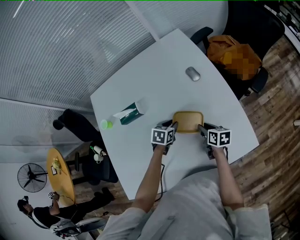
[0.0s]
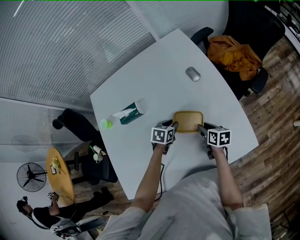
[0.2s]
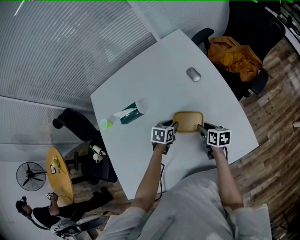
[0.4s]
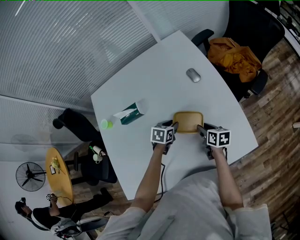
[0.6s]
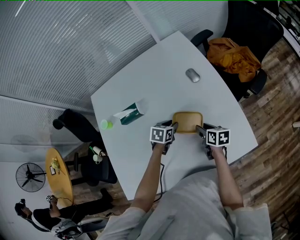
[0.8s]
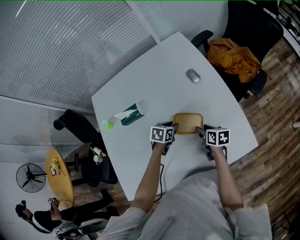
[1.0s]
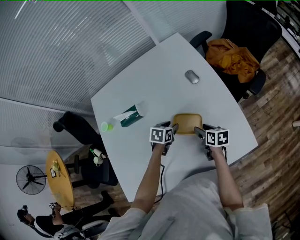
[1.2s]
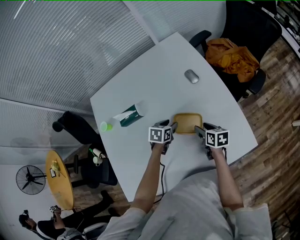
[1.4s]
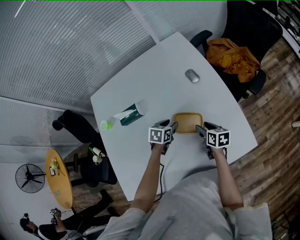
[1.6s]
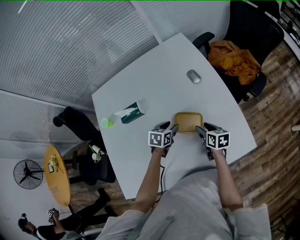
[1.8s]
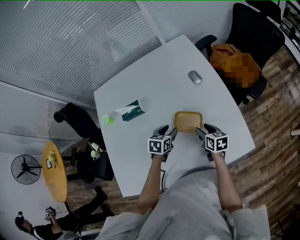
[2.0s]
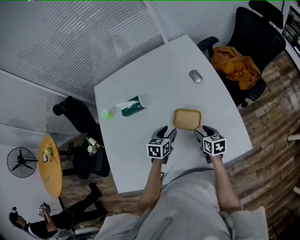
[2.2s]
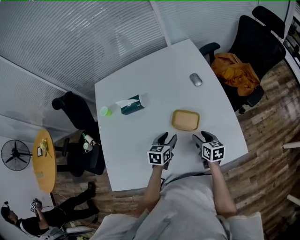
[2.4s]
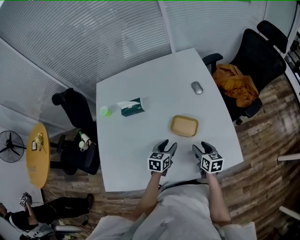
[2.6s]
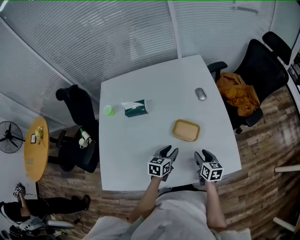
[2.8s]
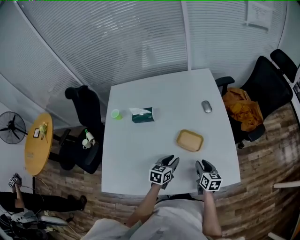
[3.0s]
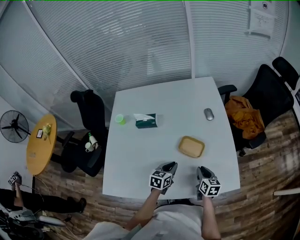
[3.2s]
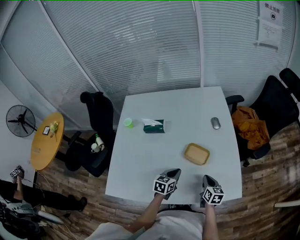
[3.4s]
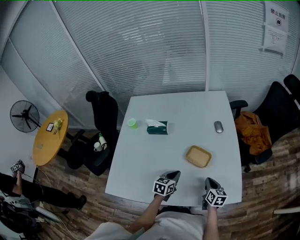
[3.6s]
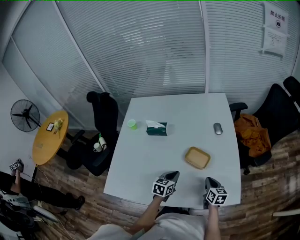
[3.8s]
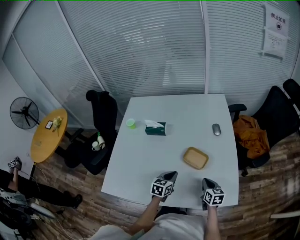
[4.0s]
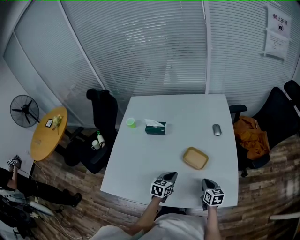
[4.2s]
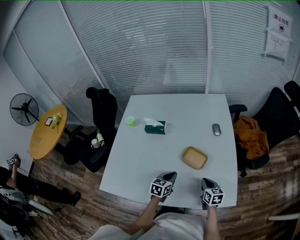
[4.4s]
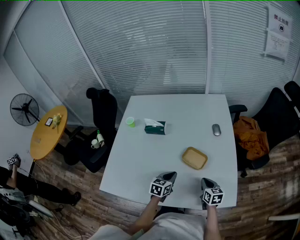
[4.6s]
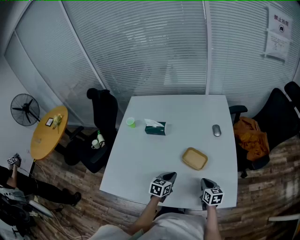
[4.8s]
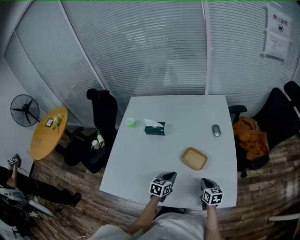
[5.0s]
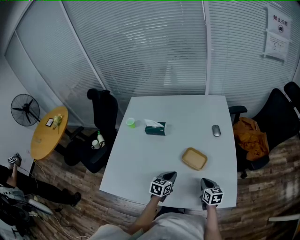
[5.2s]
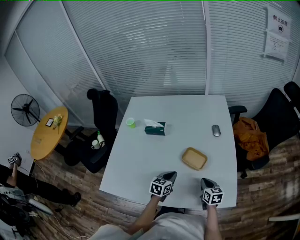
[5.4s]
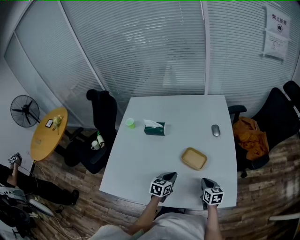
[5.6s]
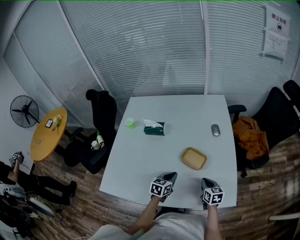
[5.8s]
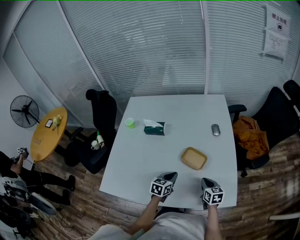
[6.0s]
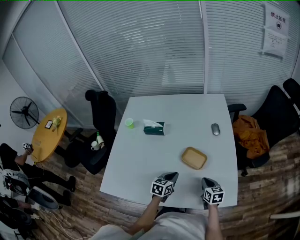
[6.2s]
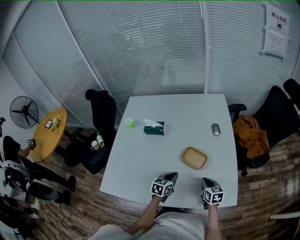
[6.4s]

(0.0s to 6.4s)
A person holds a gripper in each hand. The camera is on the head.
0.0s - 1.6s: The left gripper opens its fingers. The right gripper opens.
1.6s - 3.2s: The left gripper moves backward and upward, approximately 15 cm, rotates roughly 30 degrees, and closes its fingers, while the right gripper heads backward, covering about 10 cm, and closes up.
3.2s - 4.8s: There are only small adjustments of the grippers.
4.8s - 6.4s: Both grippers stay about where they are.

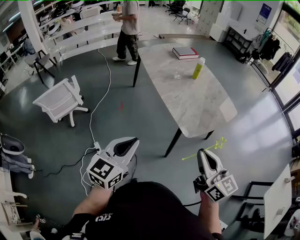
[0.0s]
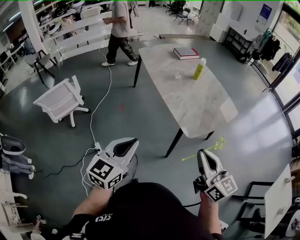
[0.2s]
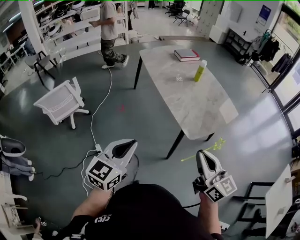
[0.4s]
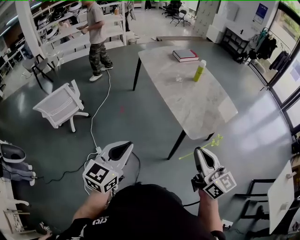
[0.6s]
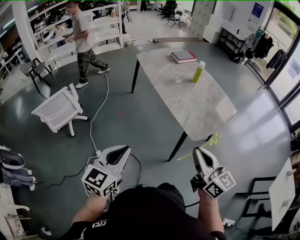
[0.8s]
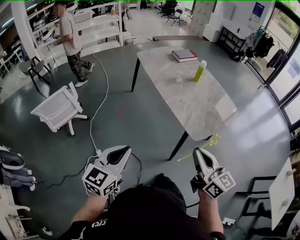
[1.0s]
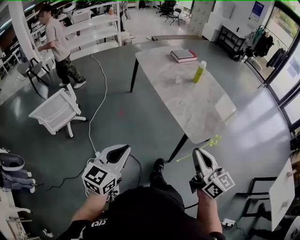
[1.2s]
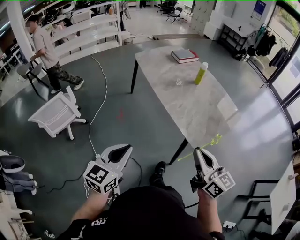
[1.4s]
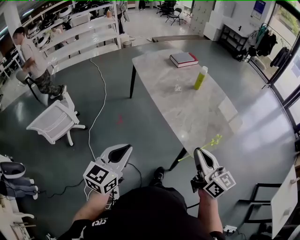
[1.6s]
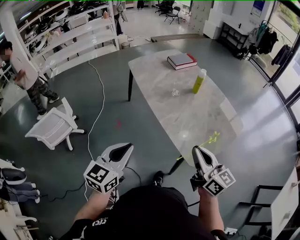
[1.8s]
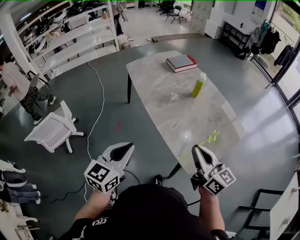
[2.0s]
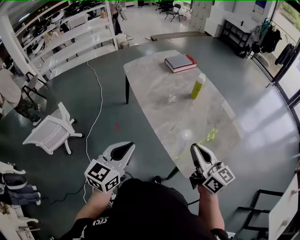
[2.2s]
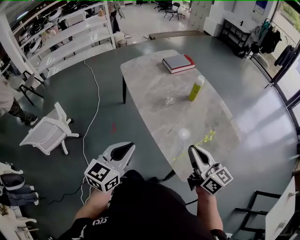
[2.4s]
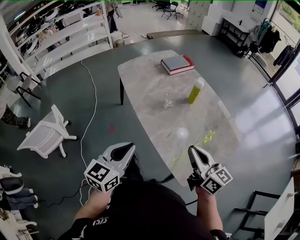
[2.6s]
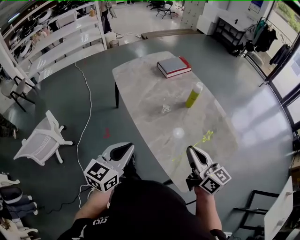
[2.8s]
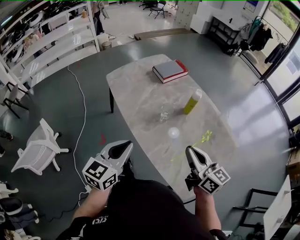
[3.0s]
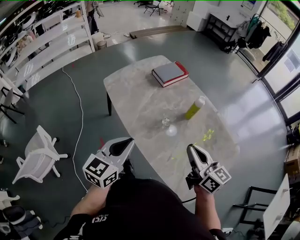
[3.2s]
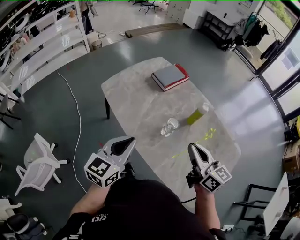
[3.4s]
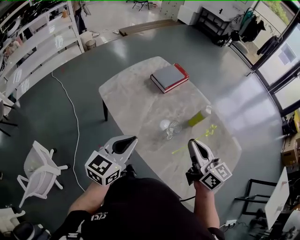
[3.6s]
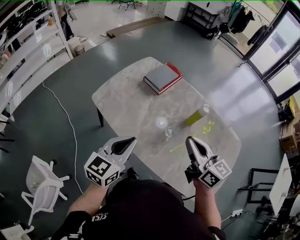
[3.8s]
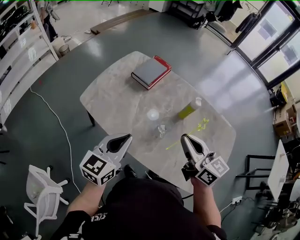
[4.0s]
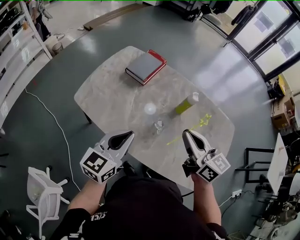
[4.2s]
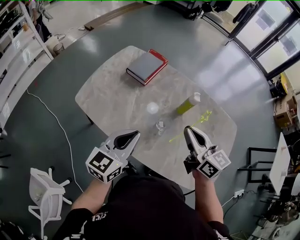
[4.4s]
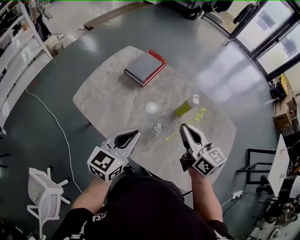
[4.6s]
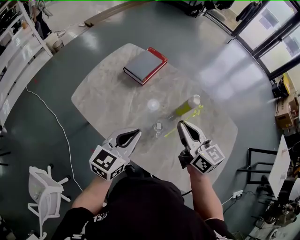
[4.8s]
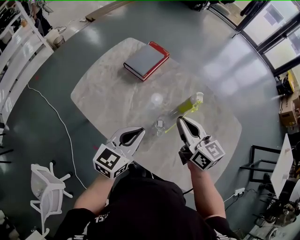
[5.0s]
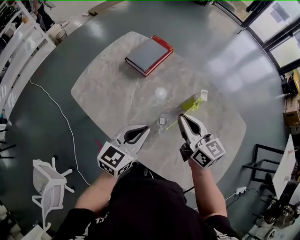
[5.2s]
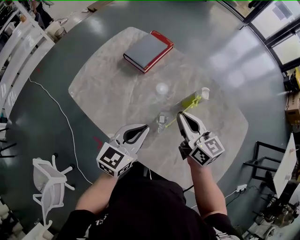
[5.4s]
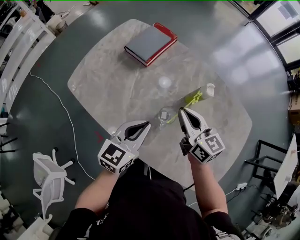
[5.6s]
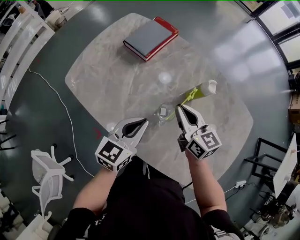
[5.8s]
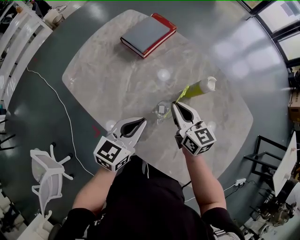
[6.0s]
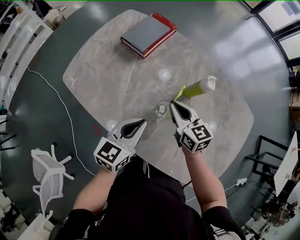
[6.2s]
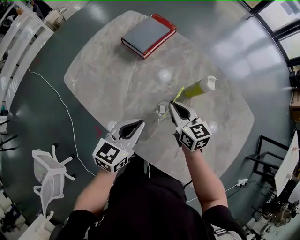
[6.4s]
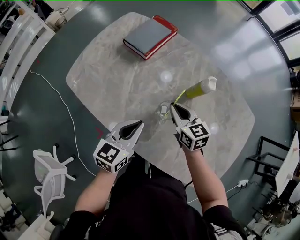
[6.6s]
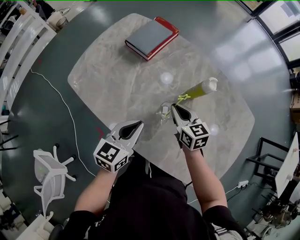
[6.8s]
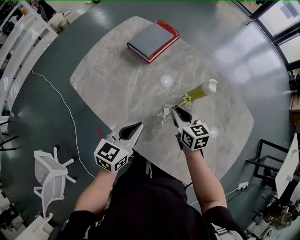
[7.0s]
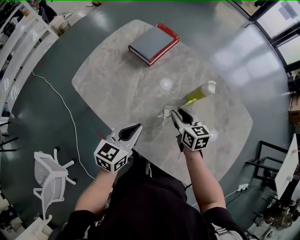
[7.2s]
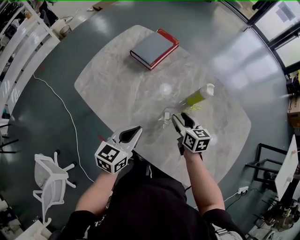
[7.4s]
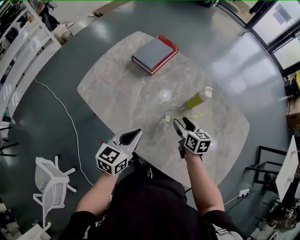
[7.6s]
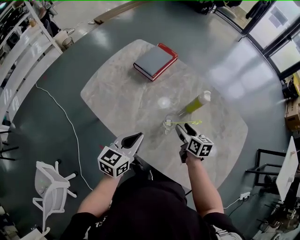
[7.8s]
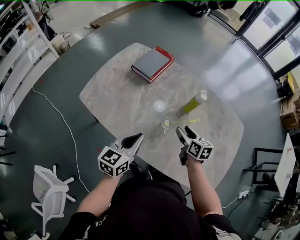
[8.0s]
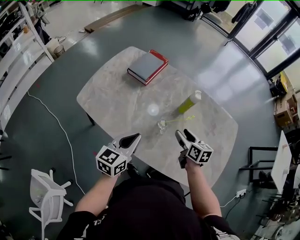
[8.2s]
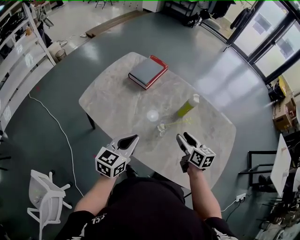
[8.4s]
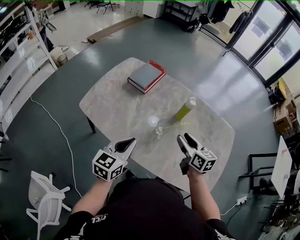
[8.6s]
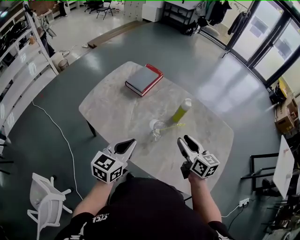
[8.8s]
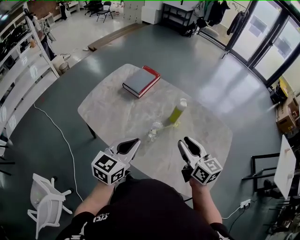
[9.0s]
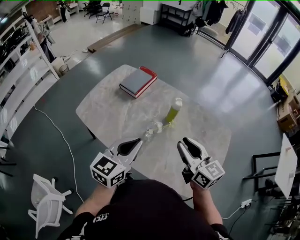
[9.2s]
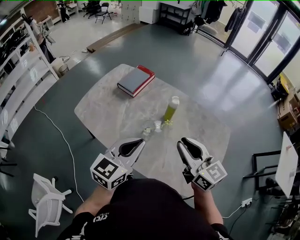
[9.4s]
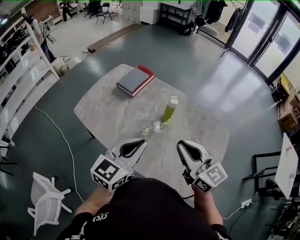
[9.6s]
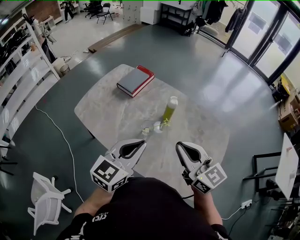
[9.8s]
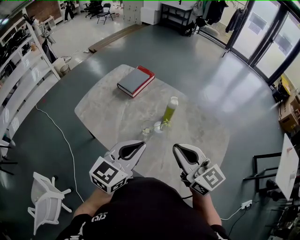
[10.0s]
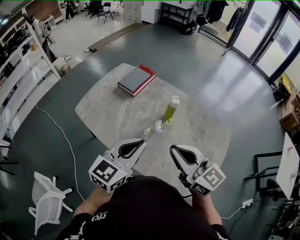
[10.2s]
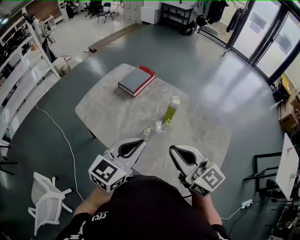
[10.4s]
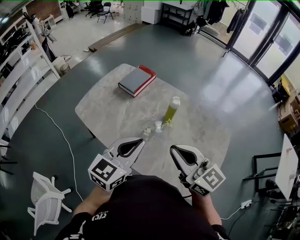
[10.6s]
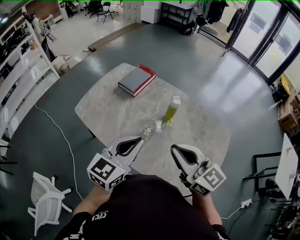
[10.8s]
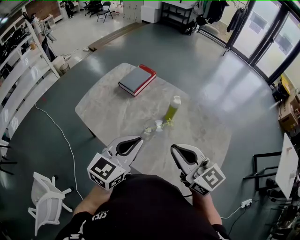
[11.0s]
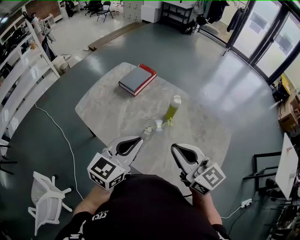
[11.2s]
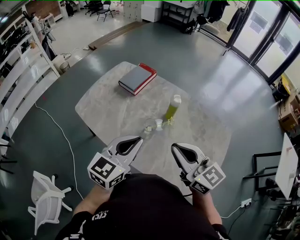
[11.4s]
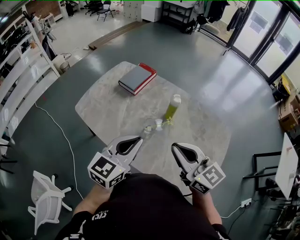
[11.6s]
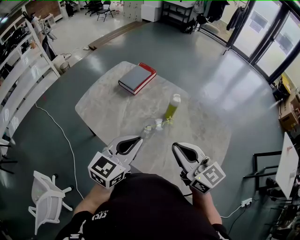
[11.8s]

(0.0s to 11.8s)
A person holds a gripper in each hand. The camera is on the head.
0.0s - 1.4s: The left gripper is displaced to the left and forward by about 10 cm. The right gripper travels forward and to the left by some 10 cm.
1.4s - 3.0s: The two grippers go approximately 40 cm forward.
3.0s - 4.4s: The left gripper changes place by approximately 25 cm, and changes its angle by roughly 30 degrees. Meanwhile the right gripper changes place by roughly 20 cm, and swivels approximately 20 degrees.
4.4s - 6.0s: The right gripper moves downward and forward, roughly 20 cm; the left gripper moves downward, to the right and forward, roughly 15 cm.
6.0s - 7.4s: The left gripper ends up some 5 cm from where it was. The right gripper moves downward, about 5 cm, and opens its fingers.
7.4s - 8.8s: The left gripper travels upward and backward by roughly 10 cm. Meanwhile the right gripper moves upward and backward, roughly 20 cm.
8.8s - 10.4s: The left gripper heads to the right and upward, covering approximately 15 cm, while the right gripper shifts roughly 15 cm upward and backward, changes its angle by roughly 30 degrees, and closes its fingers.
10.4s - 11.8s: There are only small adjustments of the grippers.

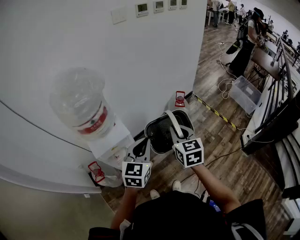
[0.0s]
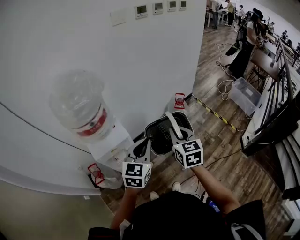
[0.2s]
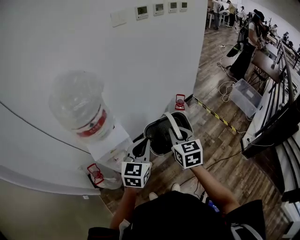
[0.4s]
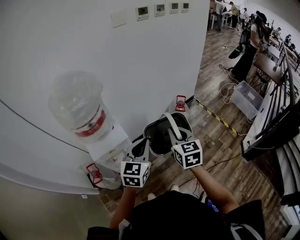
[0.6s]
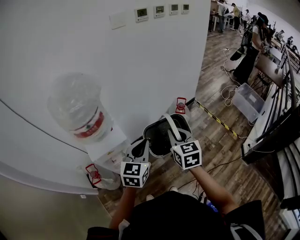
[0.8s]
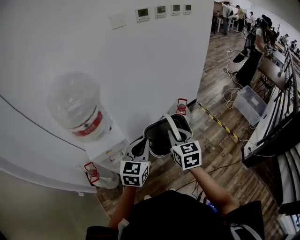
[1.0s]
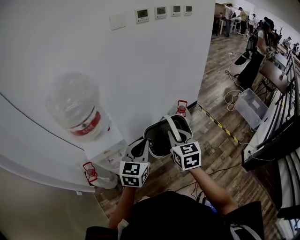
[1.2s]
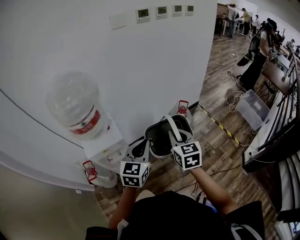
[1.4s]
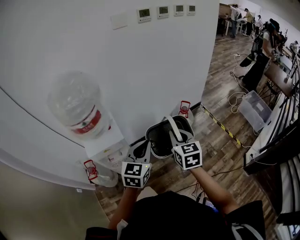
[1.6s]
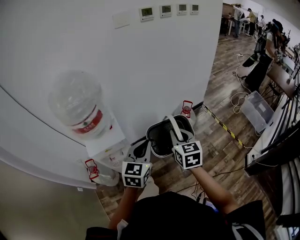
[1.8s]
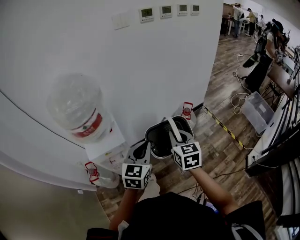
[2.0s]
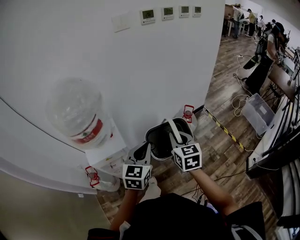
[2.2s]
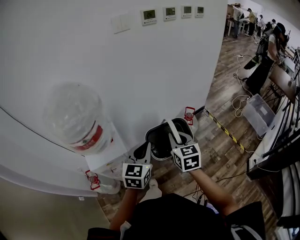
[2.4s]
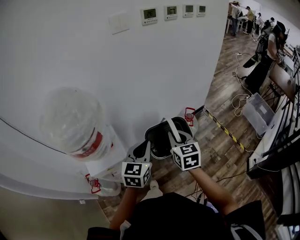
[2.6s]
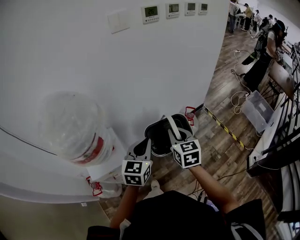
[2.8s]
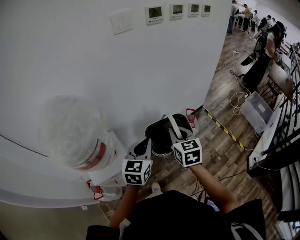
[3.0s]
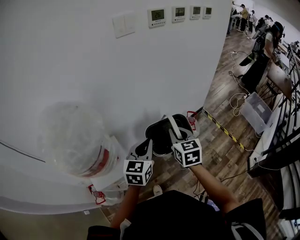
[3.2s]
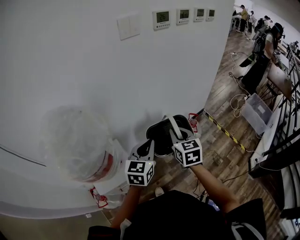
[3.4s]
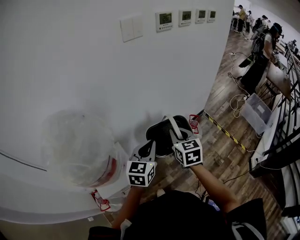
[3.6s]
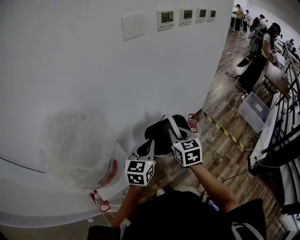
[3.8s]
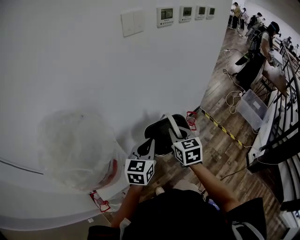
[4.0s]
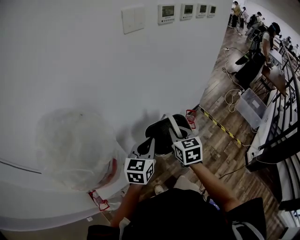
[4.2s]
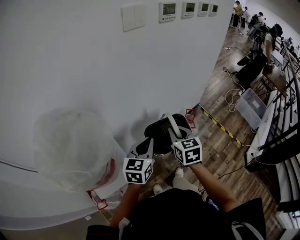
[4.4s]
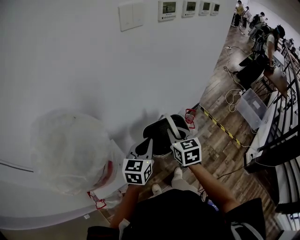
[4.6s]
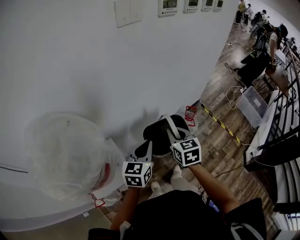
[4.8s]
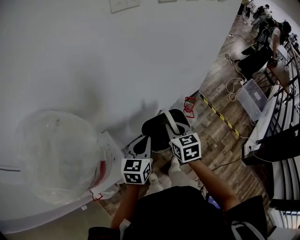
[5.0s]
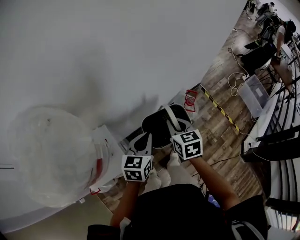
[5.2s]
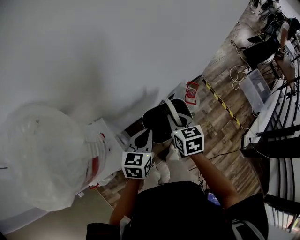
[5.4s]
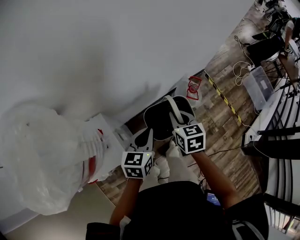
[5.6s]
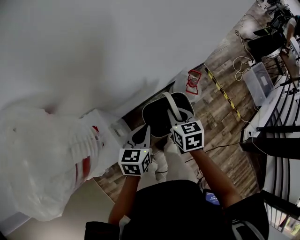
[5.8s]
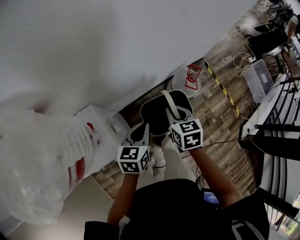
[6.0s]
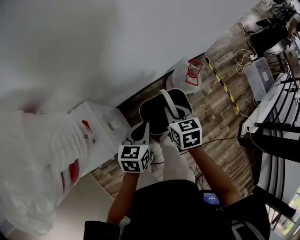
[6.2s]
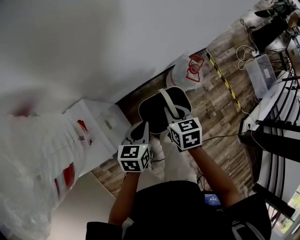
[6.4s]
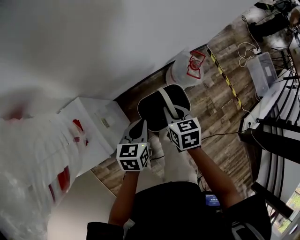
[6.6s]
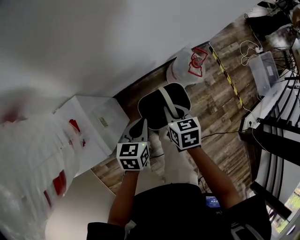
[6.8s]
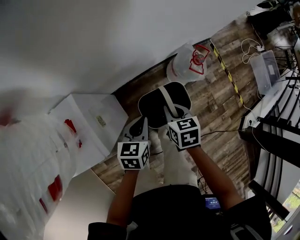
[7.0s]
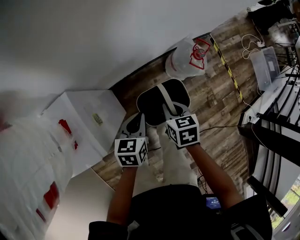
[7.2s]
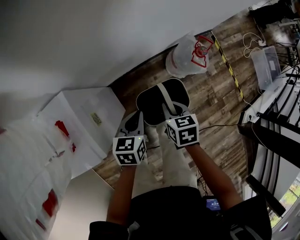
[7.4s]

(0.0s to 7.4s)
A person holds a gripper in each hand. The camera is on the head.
0.0s - 1.4s: The two grippers go roughly 5 cm to the right.
1.4s - 3.0s: The two grippers go roughly 20 cm forward.
3.0s - 4.4s: The left gripper moves forward, roughly 5 cm. The right gripper travels to the left and forward by roughly 5 cm.
4.4s - 6.0s: The grippers both shift downward by approximately 15 cm. The left gripper swivels roughly 20 degrees.
6.0s - 7.4s: The grippers both shift downward by roughly 15 cm.
